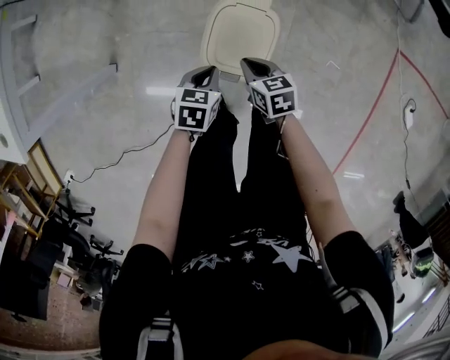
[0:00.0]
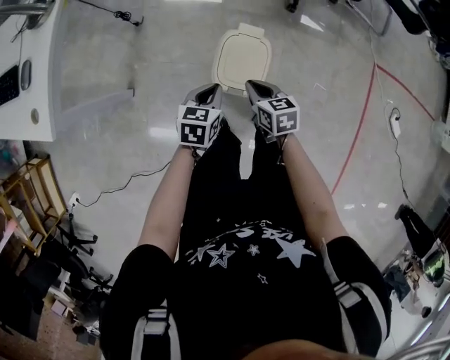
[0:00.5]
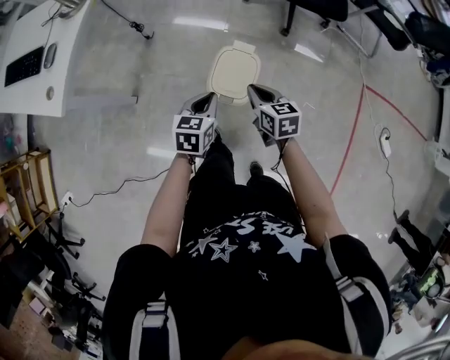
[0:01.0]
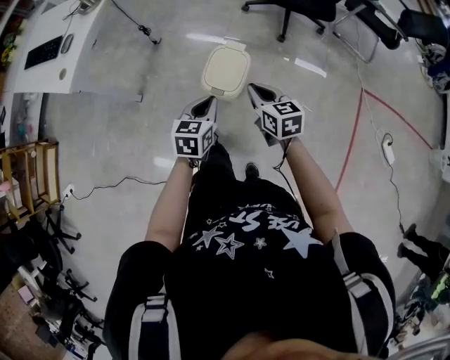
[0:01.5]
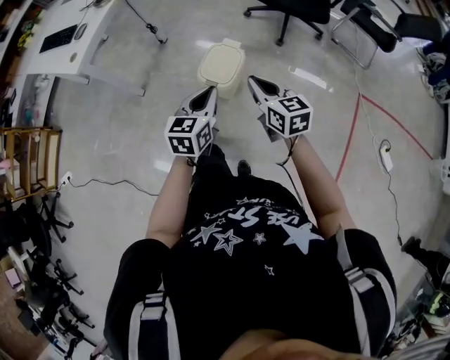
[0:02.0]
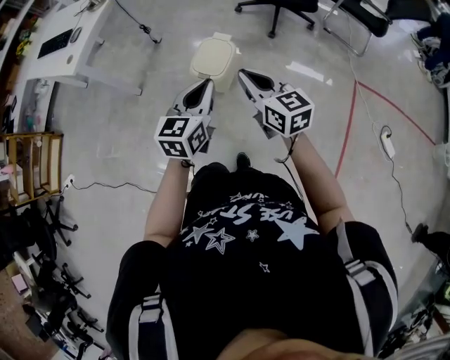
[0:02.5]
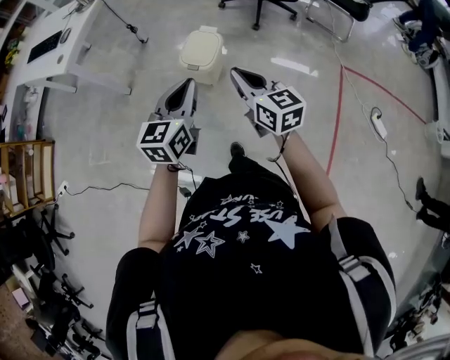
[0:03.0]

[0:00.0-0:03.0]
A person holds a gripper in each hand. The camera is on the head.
0:00.0 to 0:01.5: Both grippers travel together upward and backward, about 35 cm. The left gripper rotates roughly 30 degrees. Meanwhile the right gripper changes its angle by roughly 20 degrees.
0:01.5 to 0:03.0: The grippers both shift backward and upward by approximately 25 cm. The left gripper changes its angle by about 20 degrees.

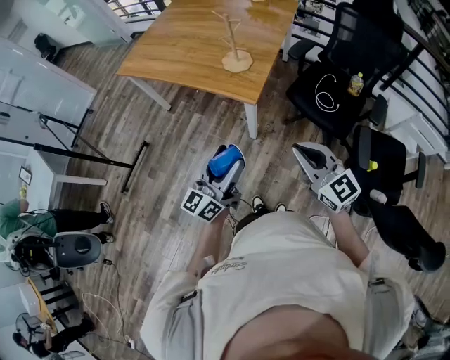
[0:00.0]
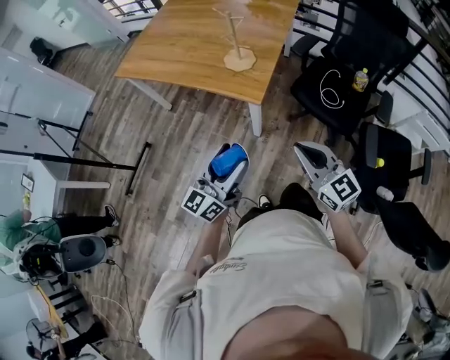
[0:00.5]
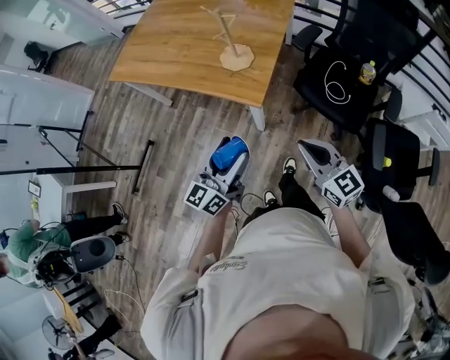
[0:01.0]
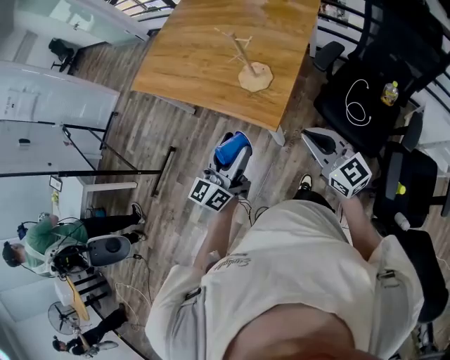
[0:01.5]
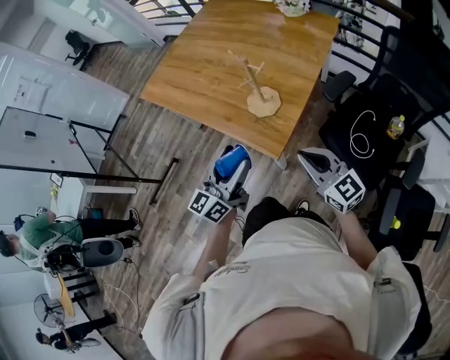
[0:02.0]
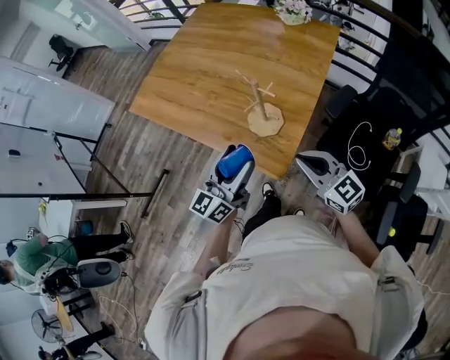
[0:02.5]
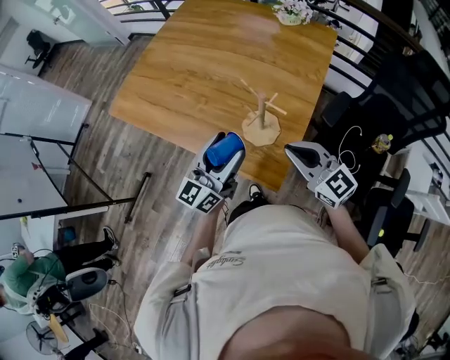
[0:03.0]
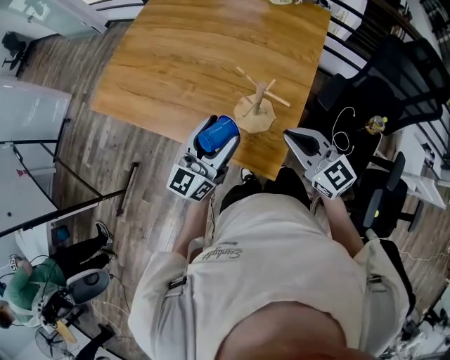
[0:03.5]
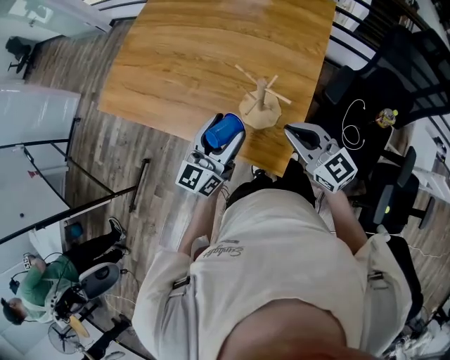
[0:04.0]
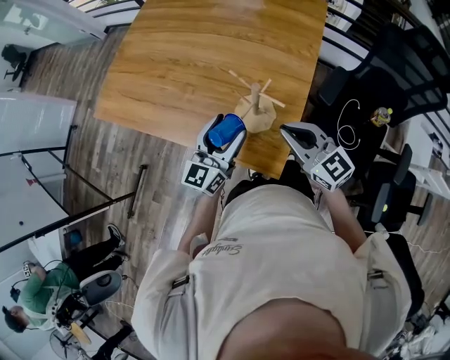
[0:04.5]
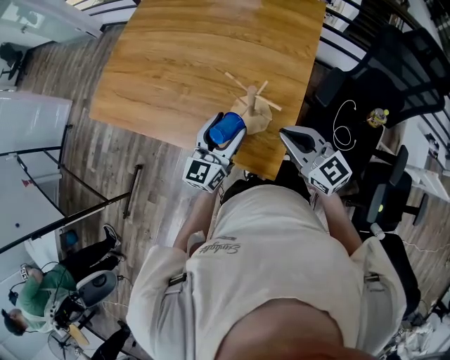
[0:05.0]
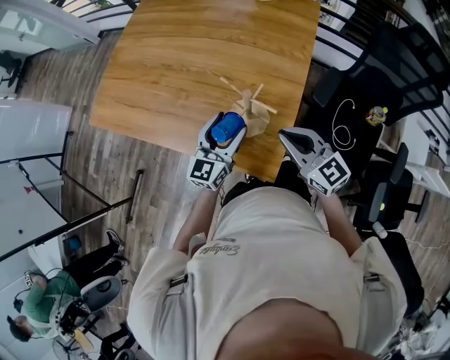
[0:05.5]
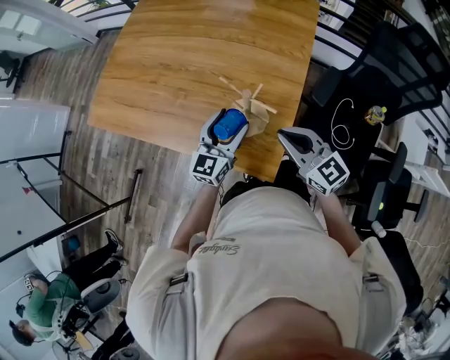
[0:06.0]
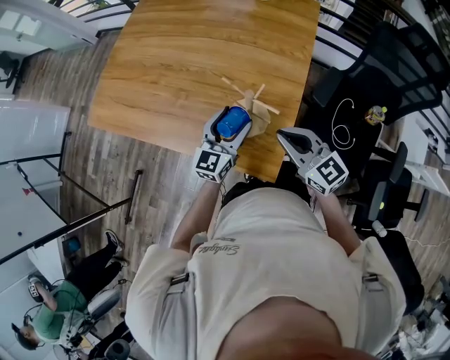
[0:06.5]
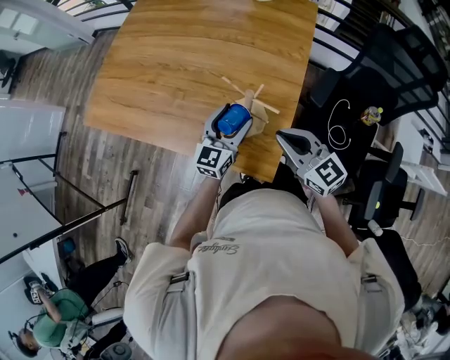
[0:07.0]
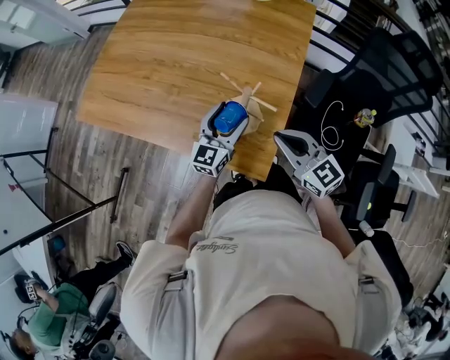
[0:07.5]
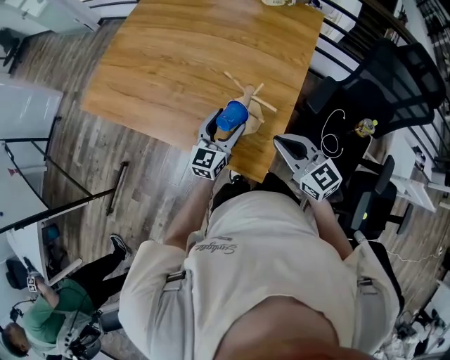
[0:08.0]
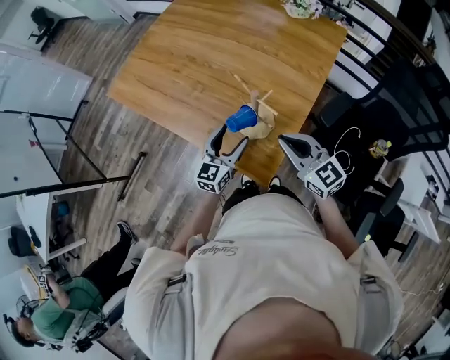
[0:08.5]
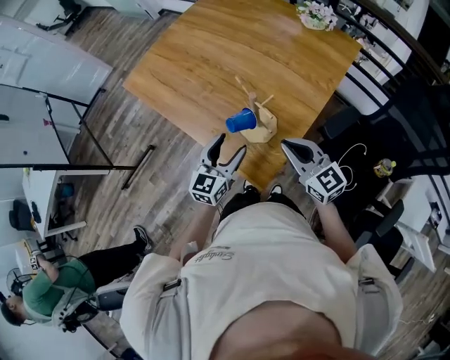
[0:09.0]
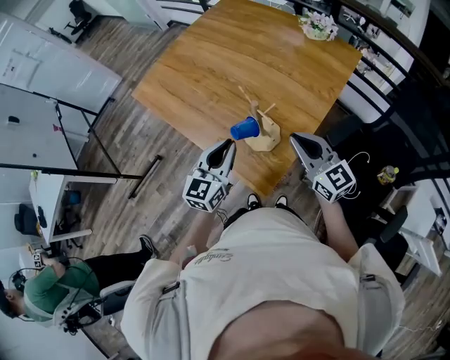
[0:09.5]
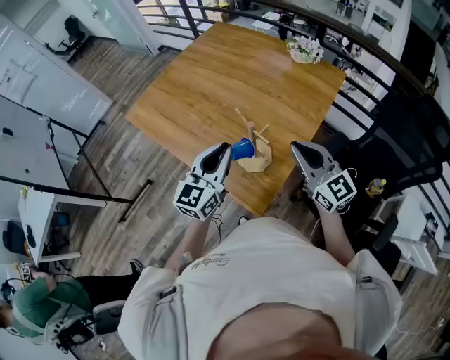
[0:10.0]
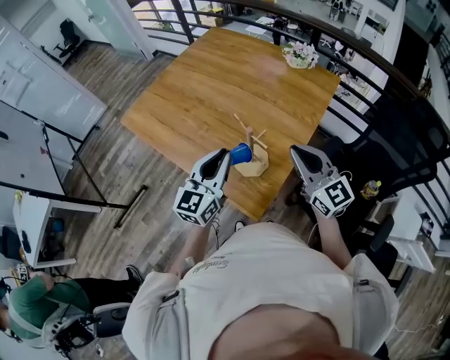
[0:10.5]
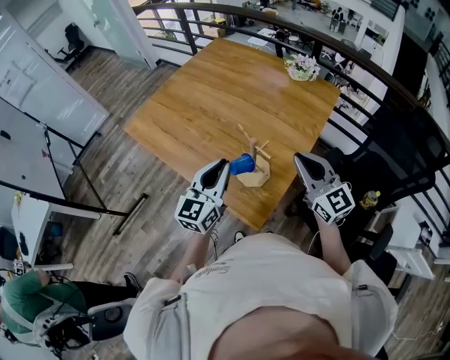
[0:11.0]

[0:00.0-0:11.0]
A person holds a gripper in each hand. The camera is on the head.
0:00.0 to 0:02.0: Both grippers move forward, roughly 25 cm.
0:02.0 to 0:03.5: The grippers both shift forward by approximately 20 cm.
0:03.5 to 0:05.5: The left gripper heads downward and to the right, covering approximately 10 cm.
0:05.5 to 0:07.5: The grippers make only small movements.
0:07.5 to 0:09.0: The left gripper is displaced backward by some 10 cm, and changes its angle by approximately 20 degrees.
0:09.0 to 0:11.0: The grippers both shift upward by some 15 cm. The left gripper closes.

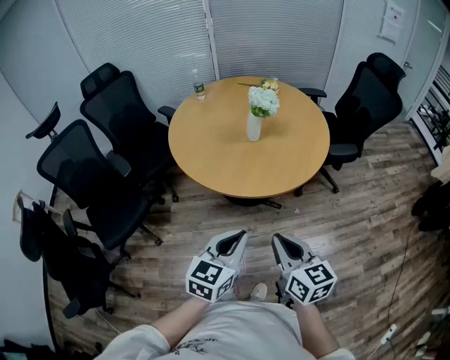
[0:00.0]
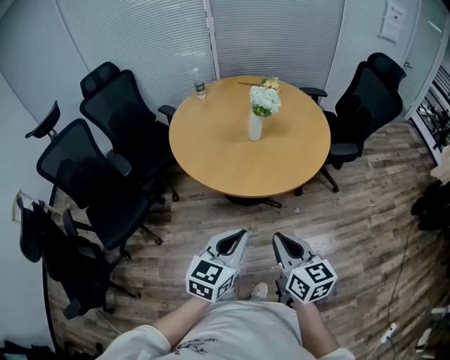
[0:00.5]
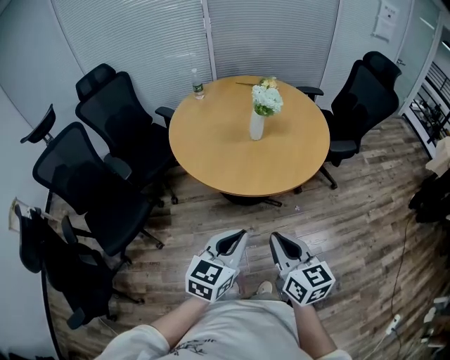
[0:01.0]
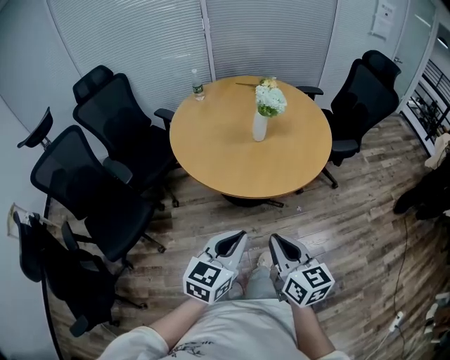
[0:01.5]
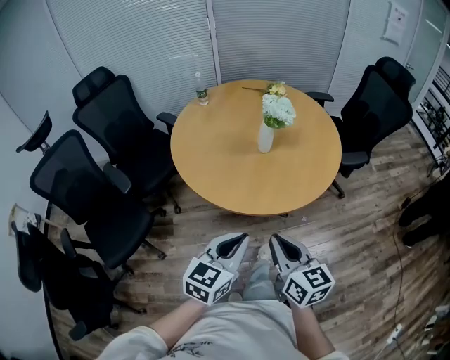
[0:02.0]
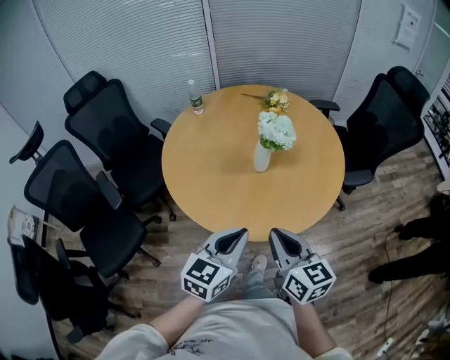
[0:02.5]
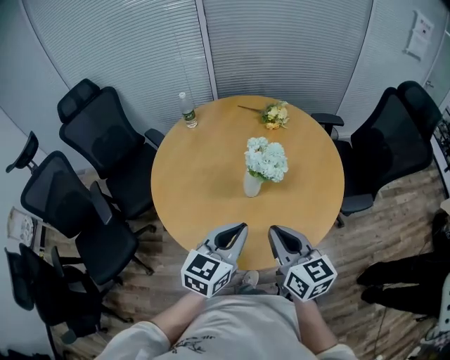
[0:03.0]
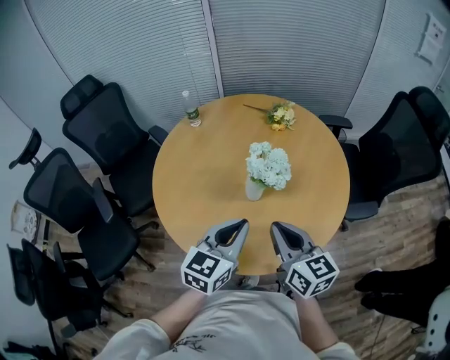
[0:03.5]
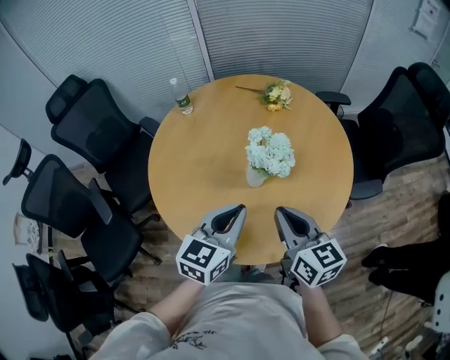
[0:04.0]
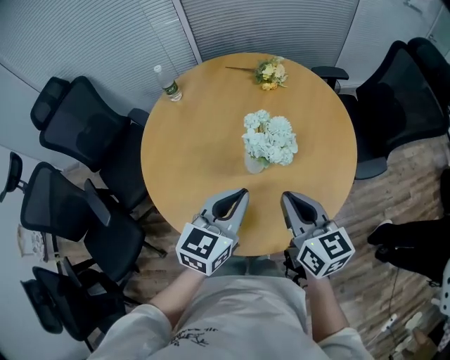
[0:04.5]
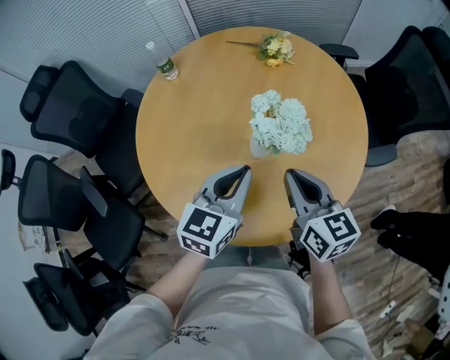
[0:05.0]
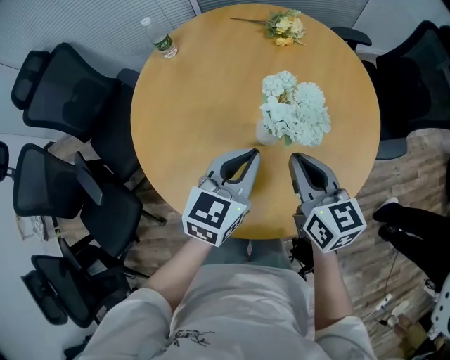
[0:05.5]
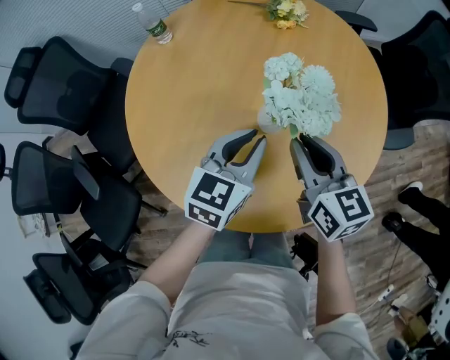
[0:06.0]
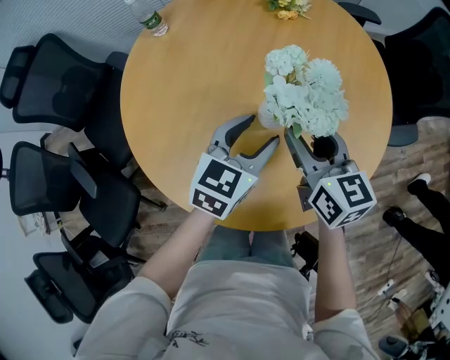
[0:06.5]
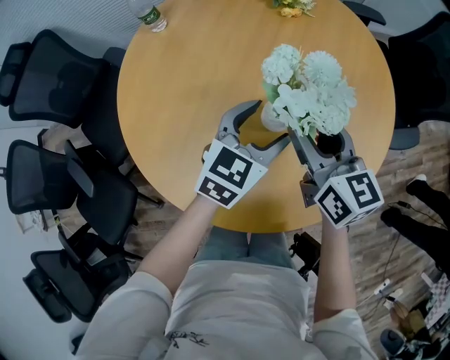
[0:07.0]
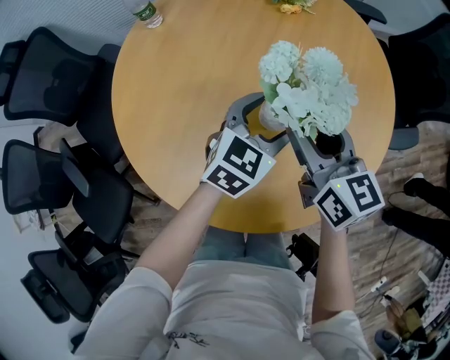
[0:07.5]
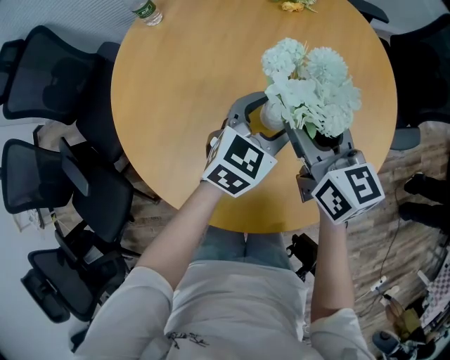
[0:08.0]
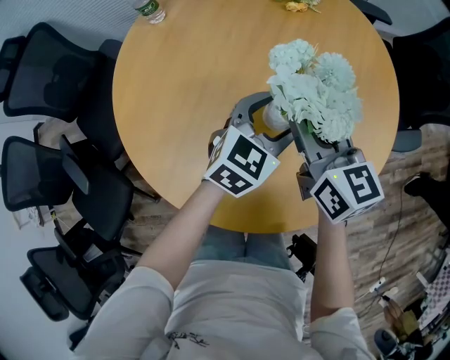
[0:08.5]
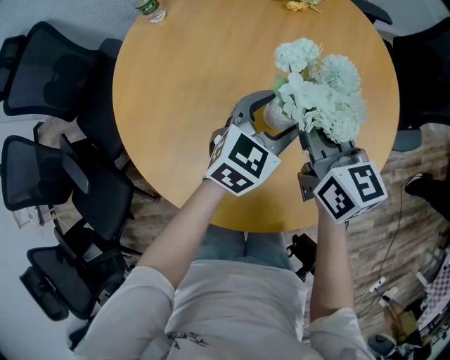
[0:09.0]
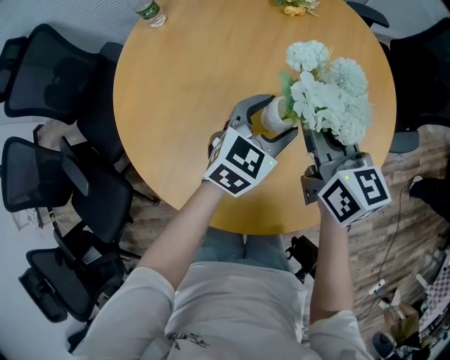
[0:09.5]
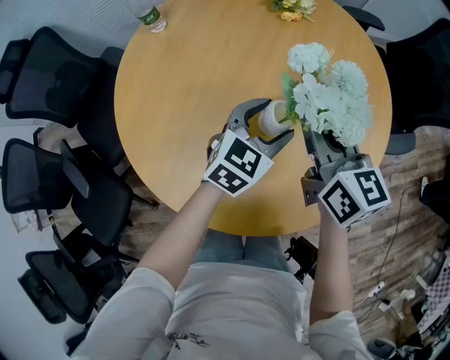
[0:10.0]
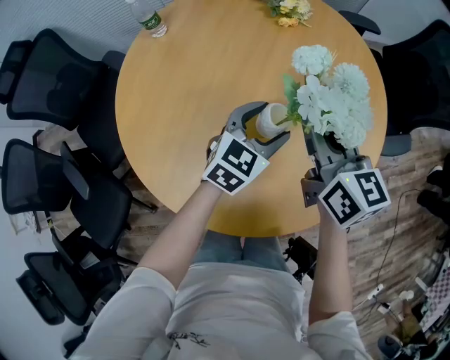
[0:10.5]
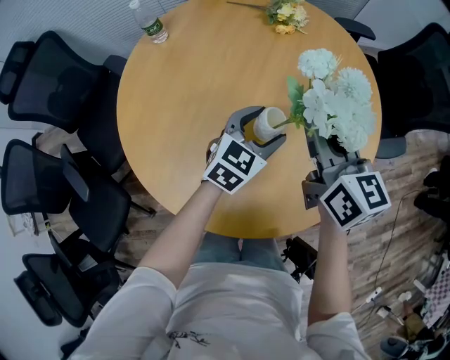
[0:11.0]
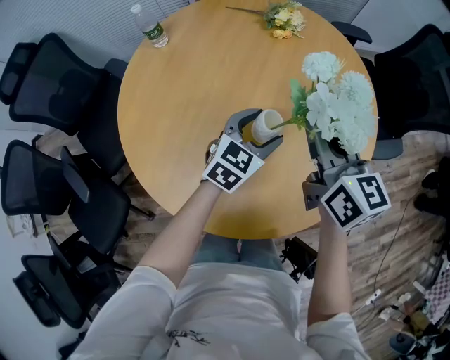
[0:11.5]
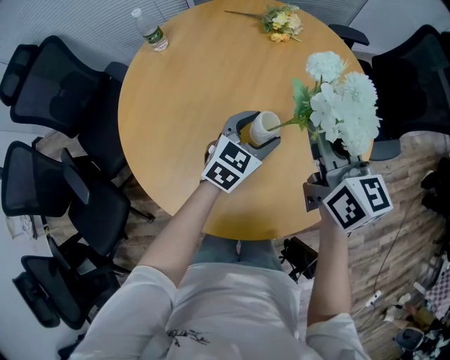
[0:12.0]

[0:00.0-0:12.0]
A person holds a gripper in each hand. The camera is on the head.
0:00.0 to 0:02.0: The left gripper heads forward and to the left, covering some 10 cm; the right gripper heads to the left and forward, covering approximately 10 cm.
0:02.0 to 0:04.0: The grippers both shift forward by roughly 35 cm.
0:04.0 to 0:06.0: The left gripper is displaced downward and forward by approximately 15 cm. Meanwhile the right gripper is displaced forward and downward by about 15 cm.
0:06.0 to 0:08.0: The right gripper moves forward, roughly 5 cm, and opens. Meanwhile the left gripper moves downward and forward, some 10 cm, and opens.
0:08.0 to 0:10.0: The right gripper closes its fingers.
0:10.0 to 0:12.0: The right gripper is displaced upward by roughly 5 cm.

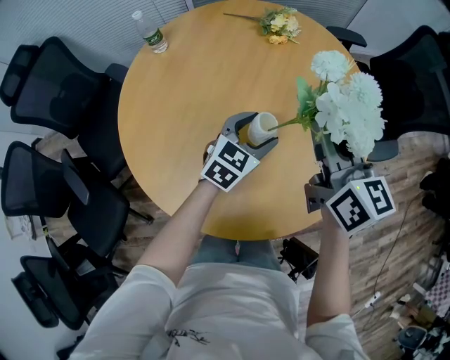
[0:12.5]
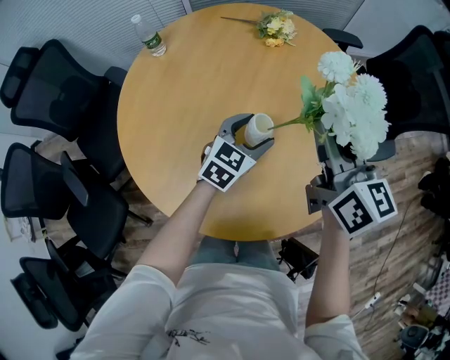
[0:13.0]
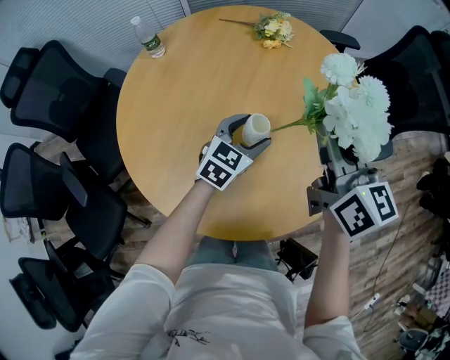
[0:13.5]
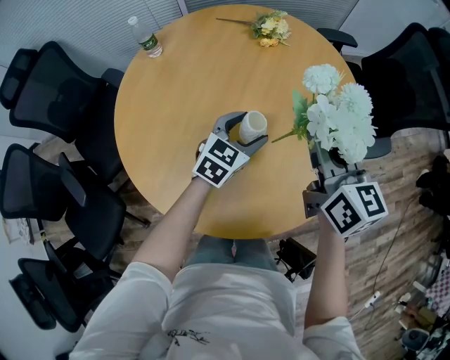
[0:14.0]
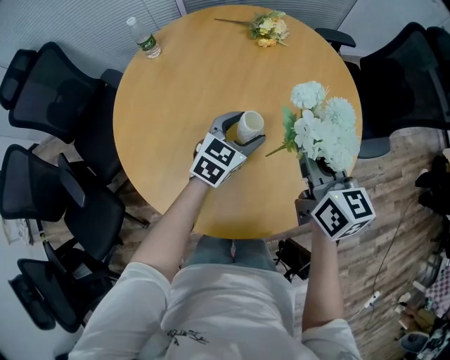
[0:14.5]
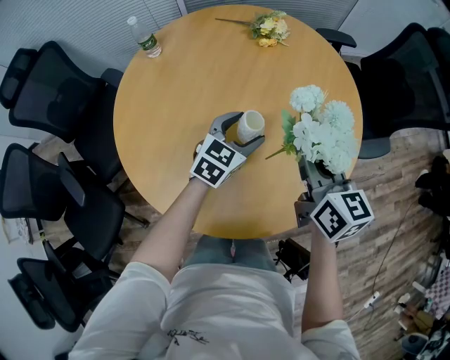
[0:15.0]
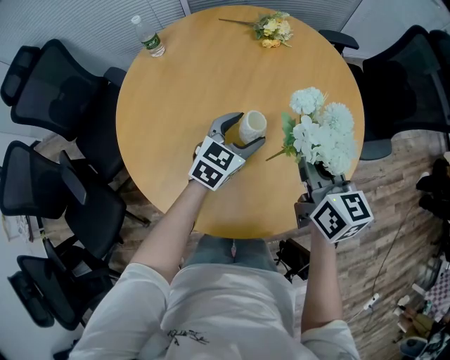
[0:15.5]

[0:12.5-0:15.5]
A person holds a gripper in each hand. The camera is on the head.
0:12.5 to 0:14.0: The grippers make only small movements.
0:14.0 to 0:15.5: The right gripper ends up roughly 5 cm from where it was.
